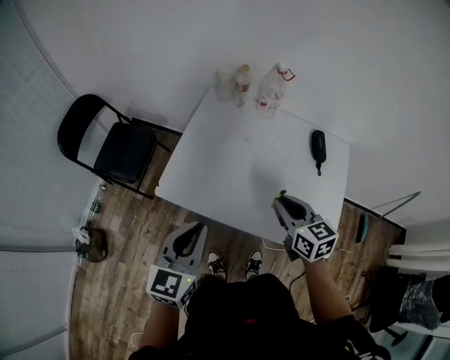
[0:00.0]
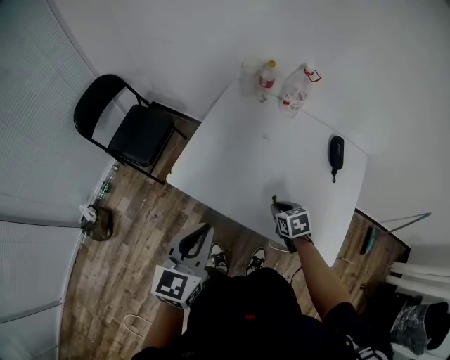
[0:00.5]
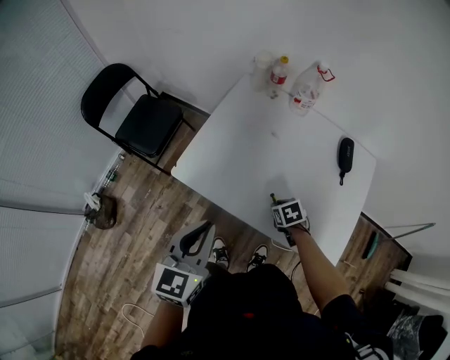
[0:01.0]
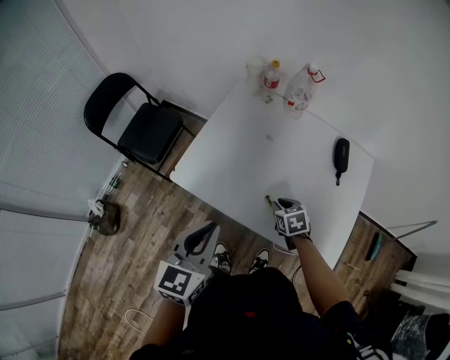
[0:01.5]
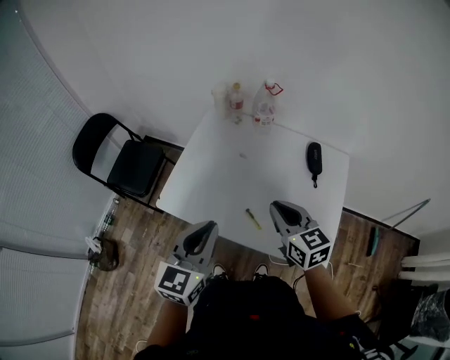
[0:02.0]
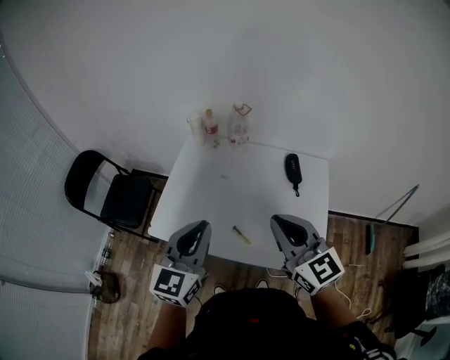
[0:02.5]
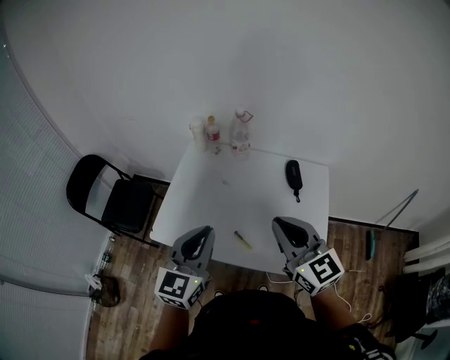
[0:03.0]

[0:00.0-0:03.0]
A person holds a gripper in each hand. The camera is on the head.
0:00.0 to 0:01.5: The right gripper goes roughly 20 cm downward, and tilts its fingers some 30 degrees downward.
0:01.5 to 0:03.0: The left gripper travels to the right and upward by about 15 cm. Meanwhile the right gripper goes about 35 cm upward, and points its fingers about 50 degrees further upward.

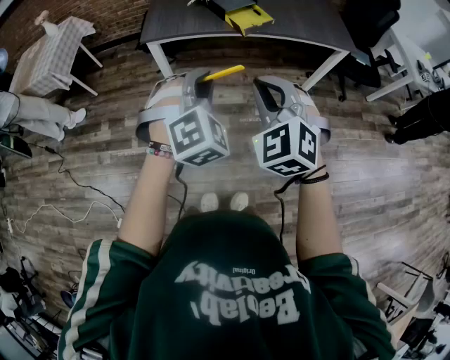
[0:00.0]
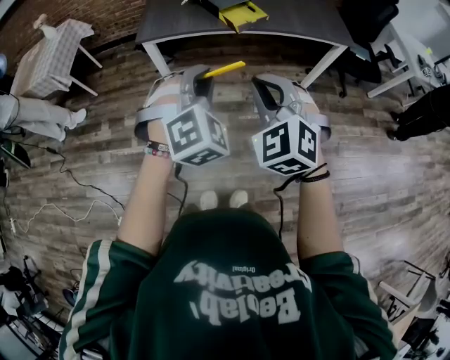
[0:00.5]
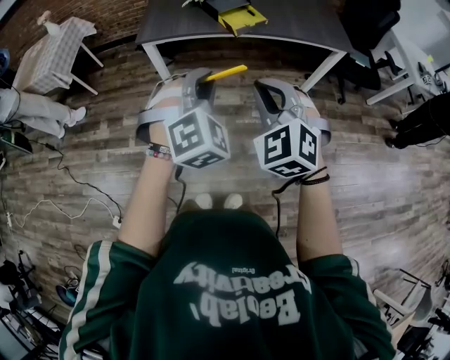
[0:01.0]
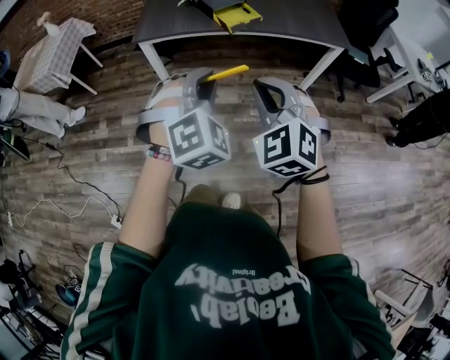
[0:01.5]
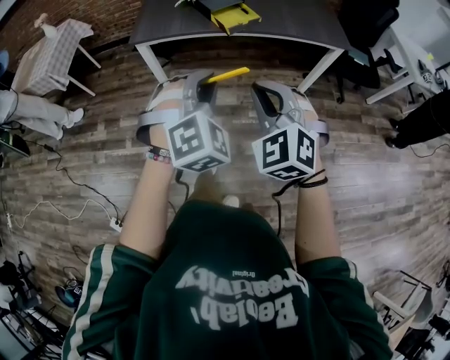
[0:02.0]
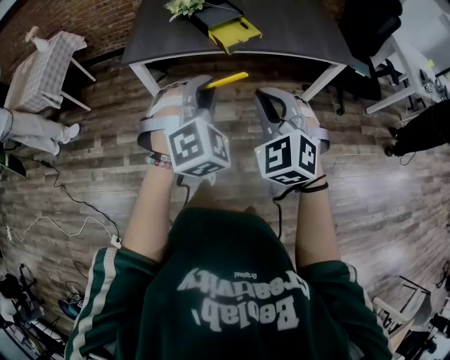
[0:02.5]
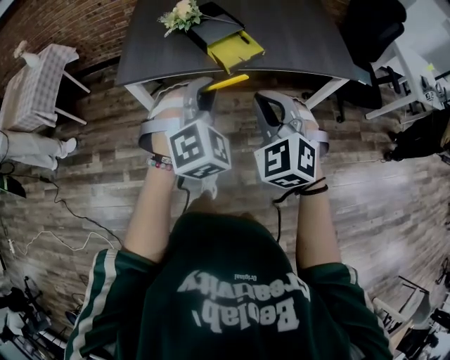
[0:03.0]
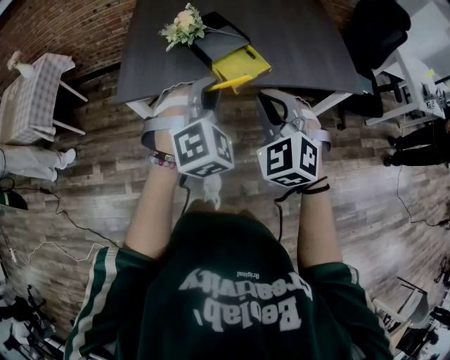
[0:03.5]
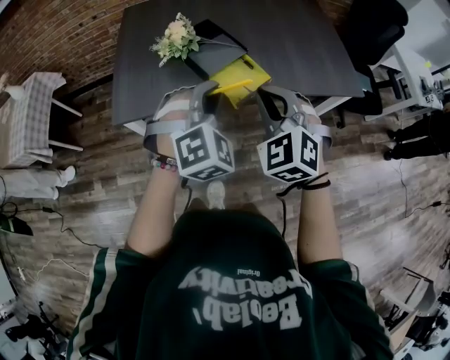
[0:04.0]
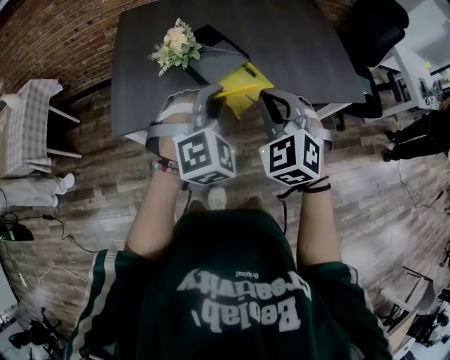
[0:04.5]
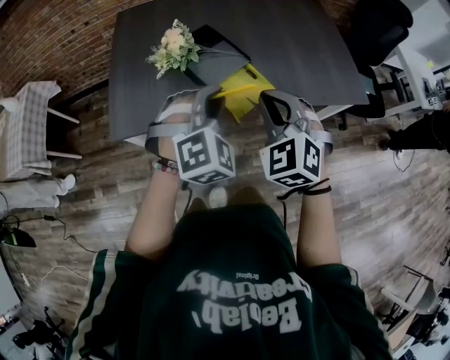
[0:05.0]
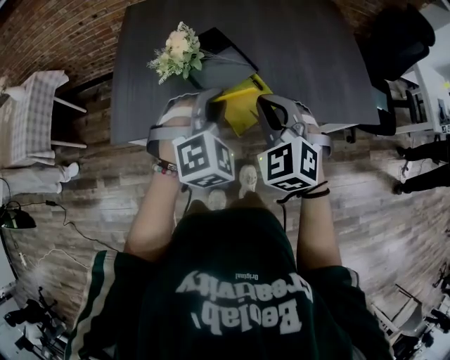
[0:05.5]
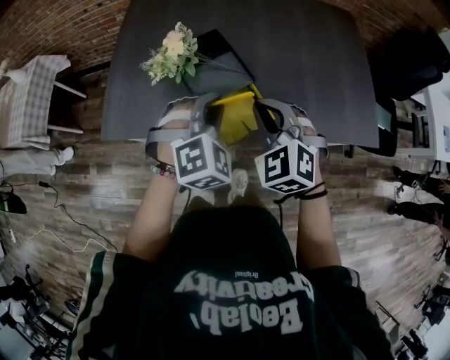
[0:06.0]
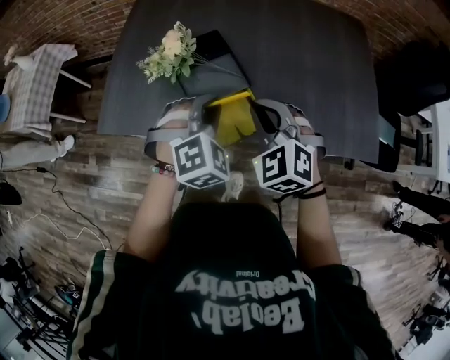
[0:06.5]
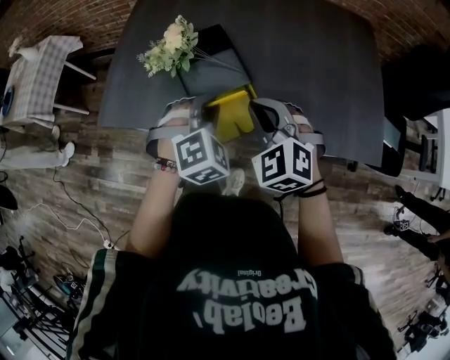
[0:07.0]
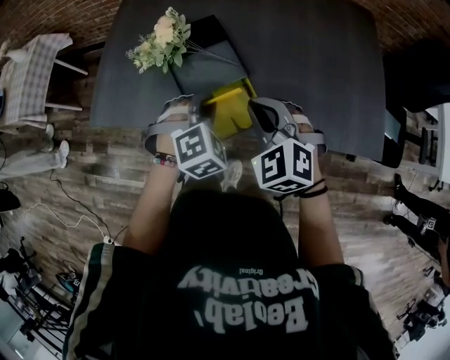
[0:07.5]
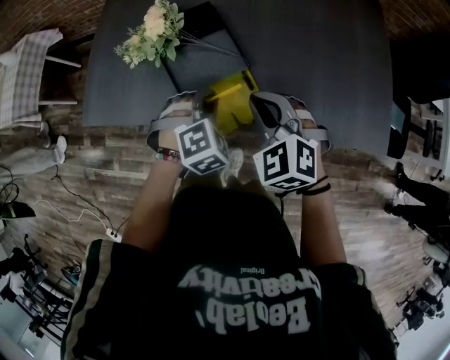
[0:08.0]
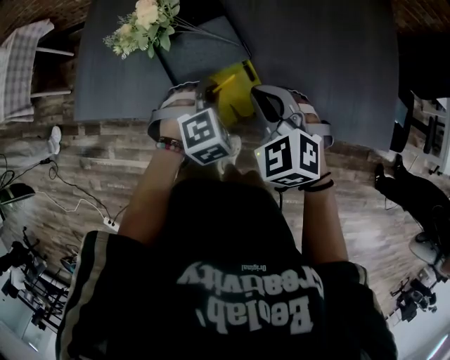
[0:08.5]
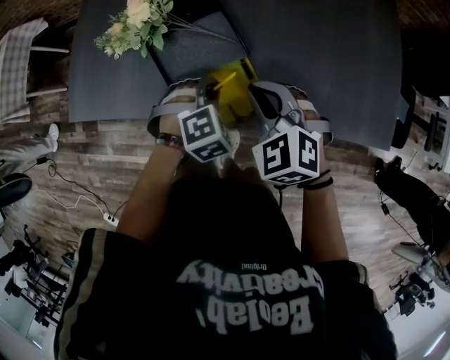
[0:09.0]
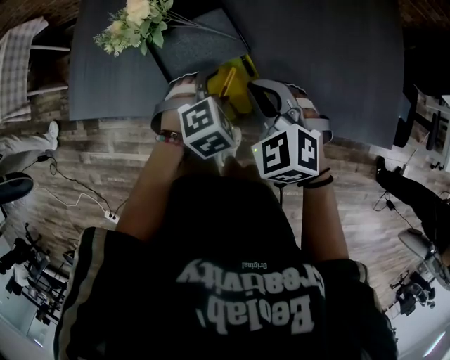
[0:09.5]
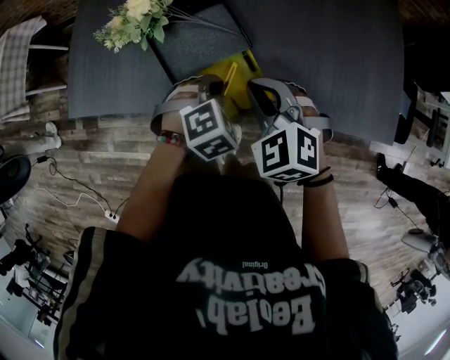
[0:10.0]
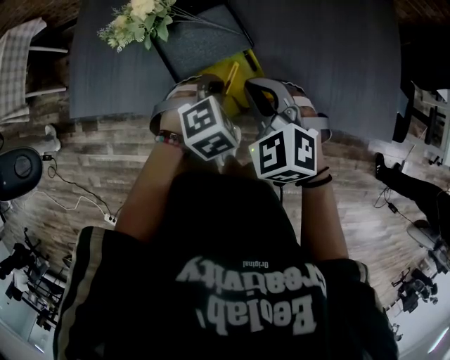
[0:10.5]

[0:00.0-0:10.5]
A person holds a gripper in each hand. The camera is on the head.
0:00.0 to 0:02.0: Both grippers travel together to the right, about 10 cm.
0:02.0 to 0:04.0: The pair of grippers is taken forward, approximately 40 cm.
0:04.0 to 0:06.5: The left gripper moves forward and downward, some 20 cm. The right gripper moves forward, about 20 cm.
0:06.5 to 0:08.5: The left gripper goes roughly 15 cm downward. Meanwhile the right gripper goes about 10 cm downward.
0:08.5 to 0:10.5: The left gripper opens, then closes once more.

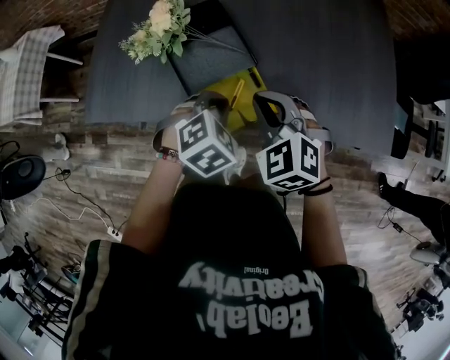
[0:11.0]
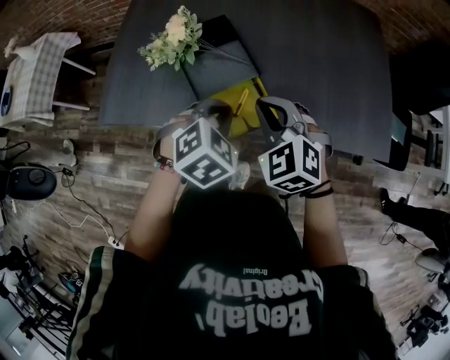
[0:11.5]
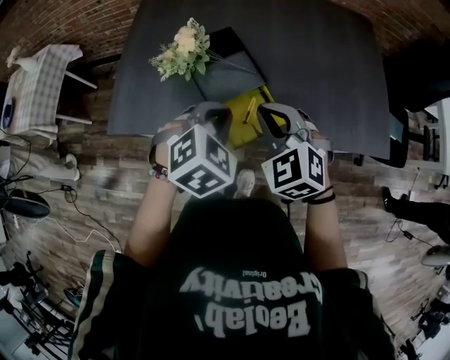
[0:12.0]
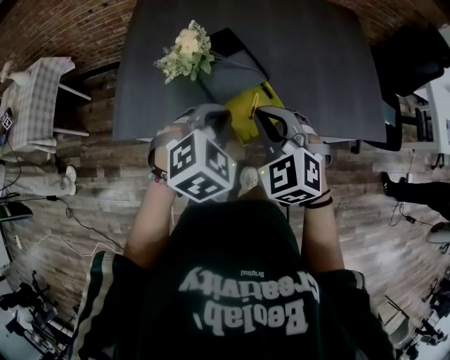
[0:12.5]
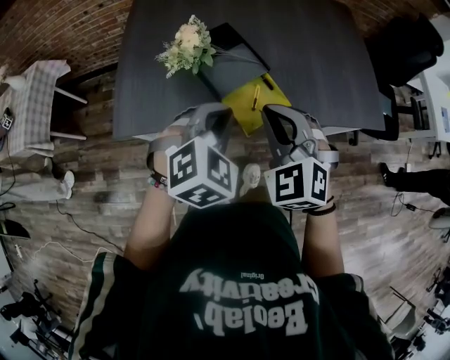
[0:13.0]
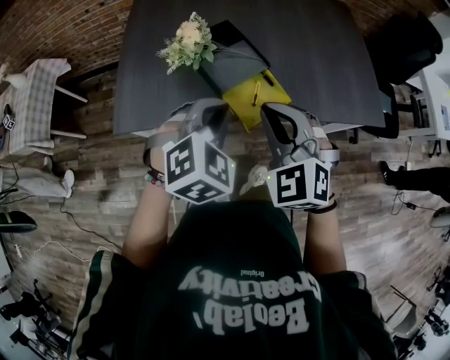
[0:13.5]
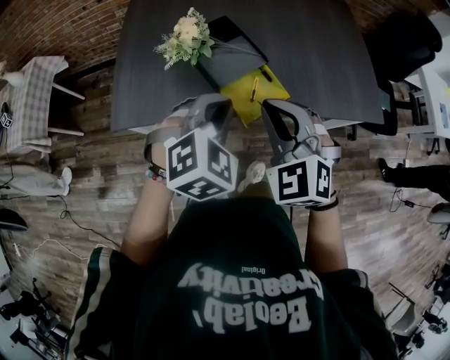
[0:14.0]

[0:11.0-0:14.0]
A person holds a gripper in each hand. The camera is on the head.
0:11.0 to 0:12.5: Both grippers move upward, to the left and backward, some 15 cm.
0:12.5 to 0:14.0: The right gripper is displaced backward by approximately 5 cm.

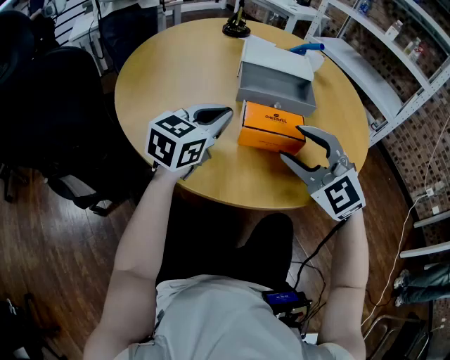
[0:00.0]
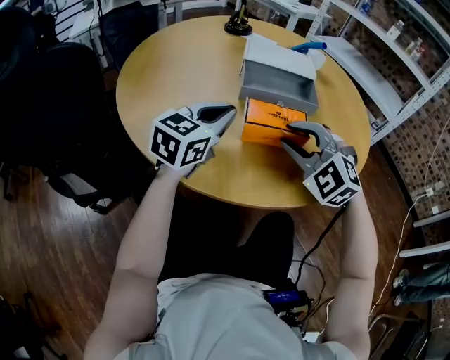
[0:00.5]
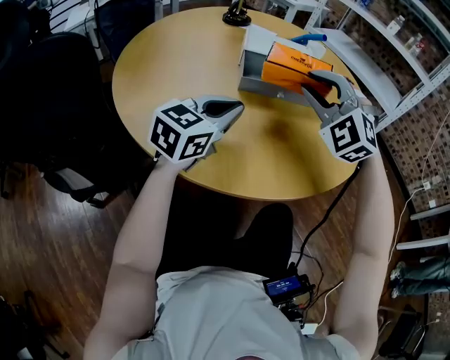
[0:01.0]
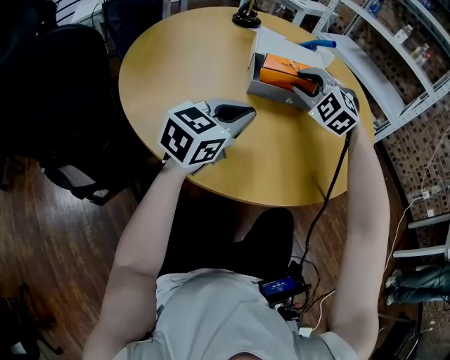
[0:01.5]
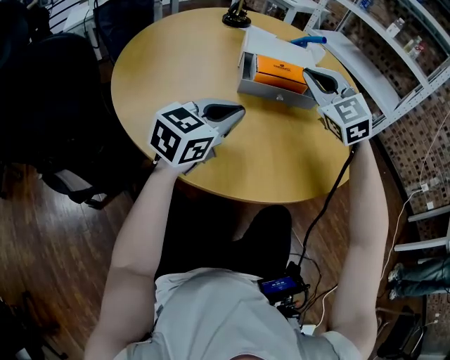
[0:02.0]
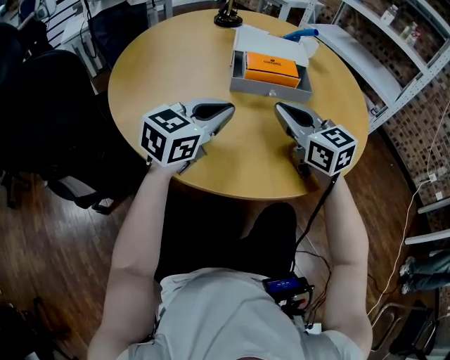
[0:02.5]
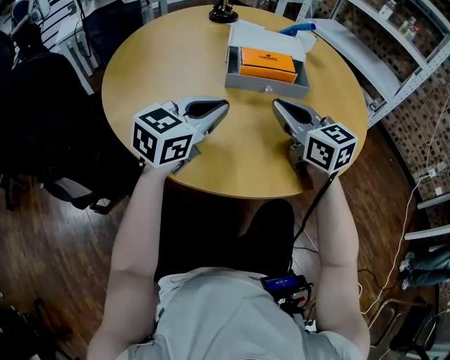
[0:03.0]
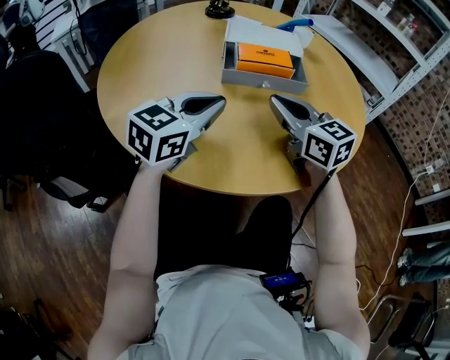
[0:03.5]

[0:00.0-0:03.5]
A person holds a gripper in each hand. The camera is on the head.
0:00.0 to 0:02.0: The right gripper shifts about 15 cm forward, and closes its fingers.
0:02.0 to 0:03.5: The right gripper moves backward and downward, about 10 cm, and twists approximately 40 degrees clockwise, seen from behind.

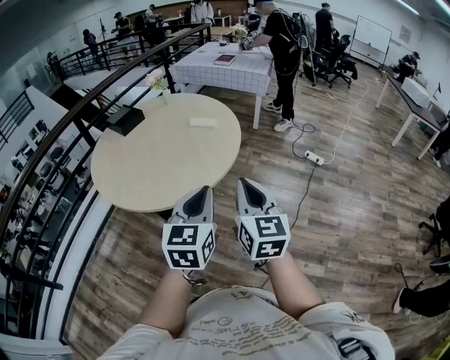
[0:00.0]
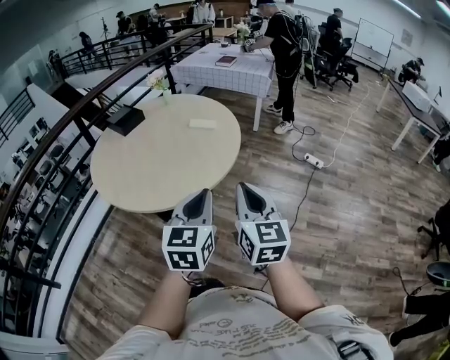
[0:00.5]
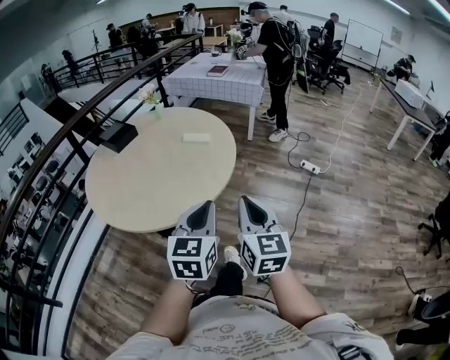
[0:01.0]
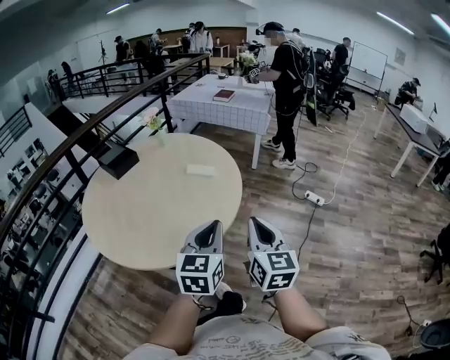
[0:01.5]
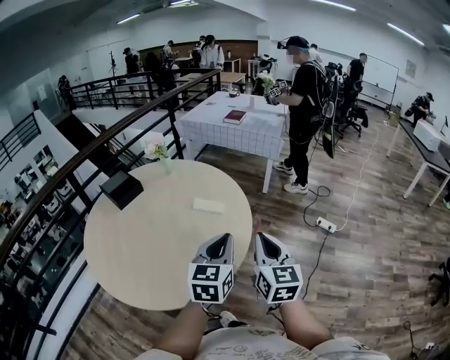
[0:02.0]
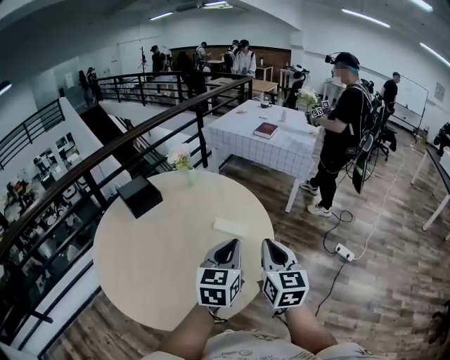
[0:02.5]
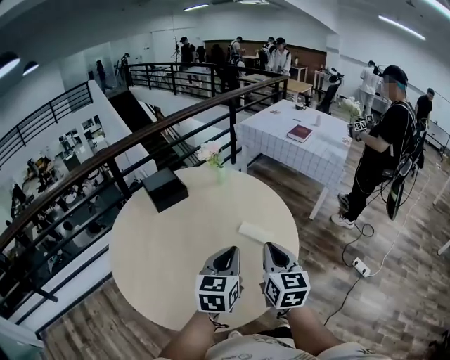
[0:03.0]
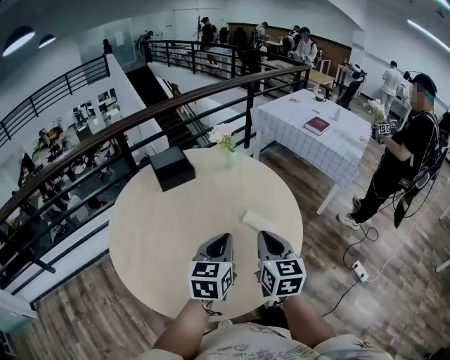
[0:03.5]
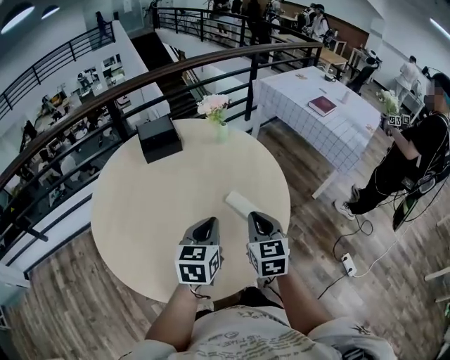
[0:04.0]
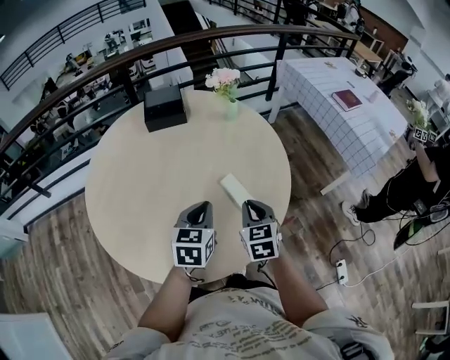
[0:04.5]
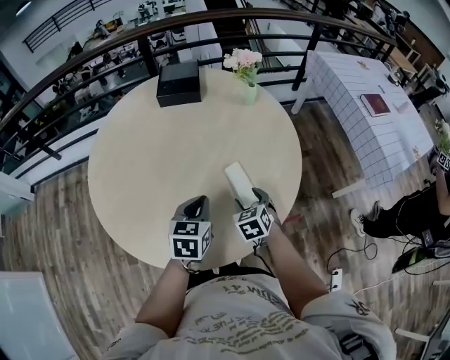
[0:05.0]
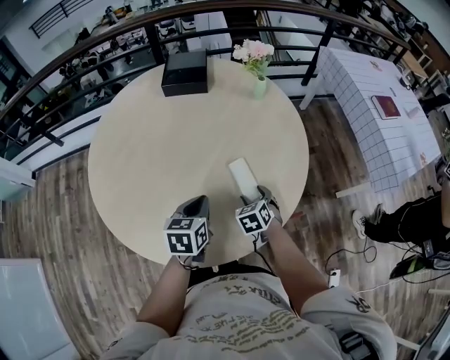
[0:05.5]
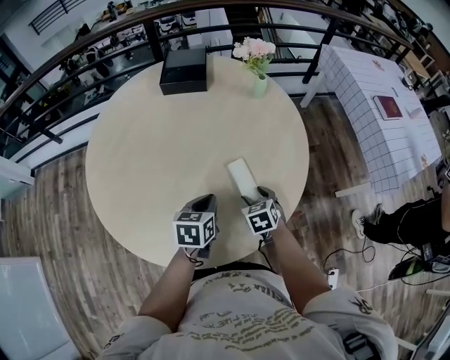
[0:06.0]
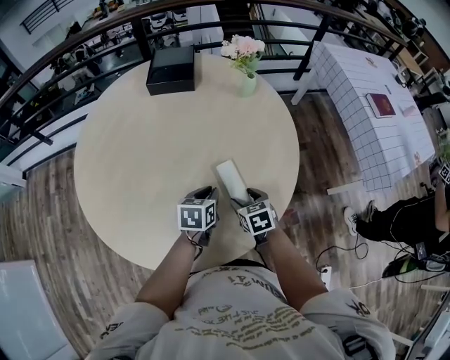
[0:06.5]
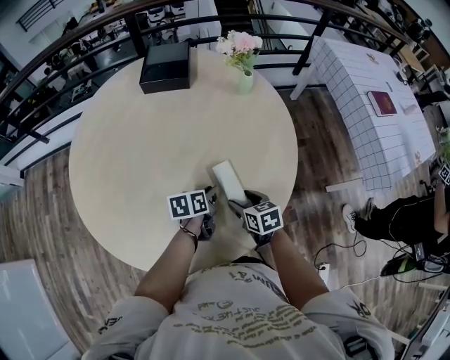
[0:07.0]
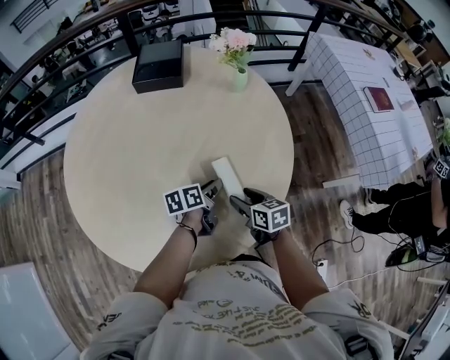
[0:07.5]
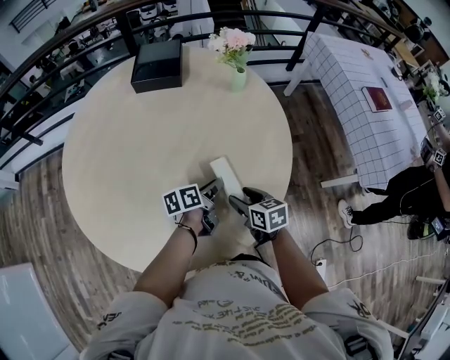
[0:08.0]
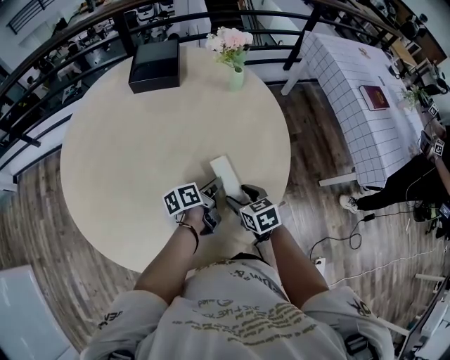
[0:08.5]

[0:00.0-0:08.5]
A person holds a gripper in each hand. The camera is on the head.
0:00.0 to 0:02.0: The grippers both shift forward by approximately 30 cm.
0:02.0 to 0:04.0: The left gripper moves approximately 25 cm, and rotates roughly 40 degrees; the right gripper ends up roughly 30 cm from where it was, and rotates some 40 degrees.
0:04.0 to 0:06.5: The right gripper goes approximately 25 cm downward, rotates approximately 40 degrees, and opens its fingers. Meanwhile the left gripper shifts about 25 cm downward, to the right and forward, and swivels approximately 30 degrees.
0:06.5 to 0:08.5: The left gripper changes place by approximately 5 cm, and rotates around the line of its fingers by roughly 40 degrees, counterclockwise from behind.
